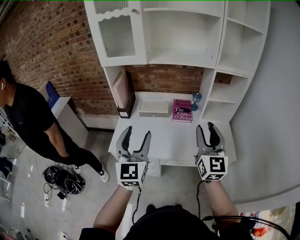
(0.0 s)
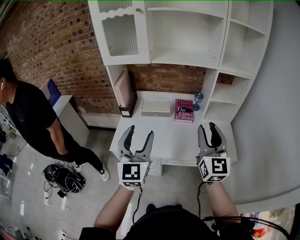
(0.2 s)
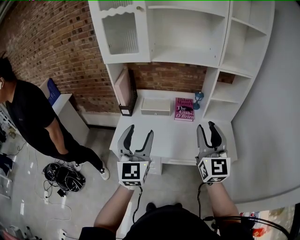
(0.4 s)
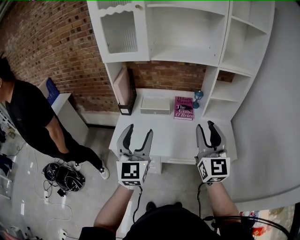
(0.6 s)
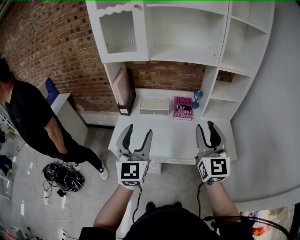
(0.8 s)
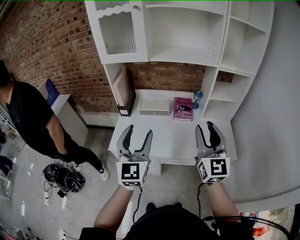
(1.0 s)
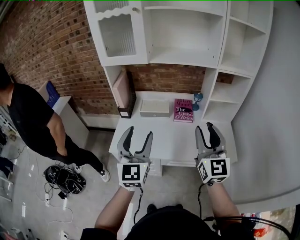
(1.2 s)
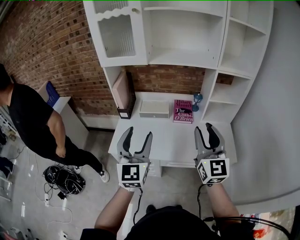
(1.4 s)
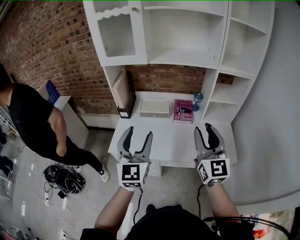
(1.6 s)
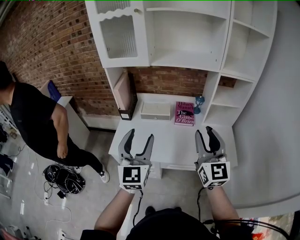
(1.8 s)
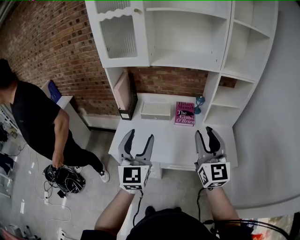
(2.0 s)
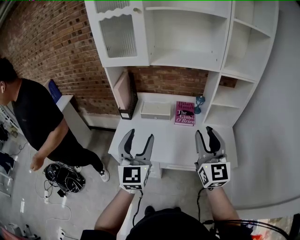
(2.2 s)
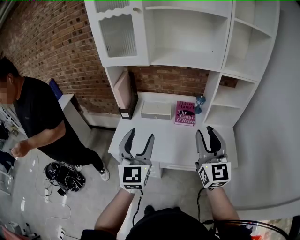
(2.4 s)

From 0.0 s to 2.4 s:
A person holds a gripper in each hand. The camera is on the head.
From 0.0 s to 2.4 s: The grippers stay close to where they were, moving slightly.

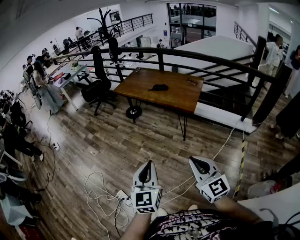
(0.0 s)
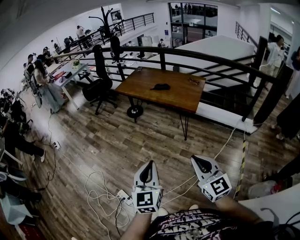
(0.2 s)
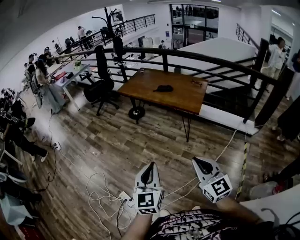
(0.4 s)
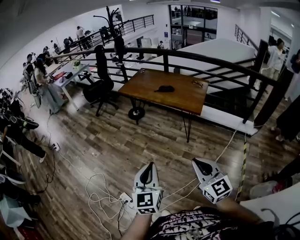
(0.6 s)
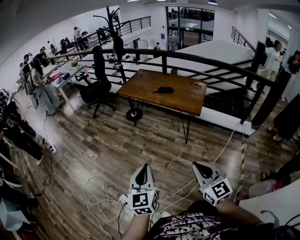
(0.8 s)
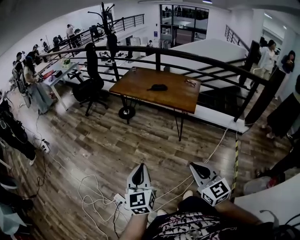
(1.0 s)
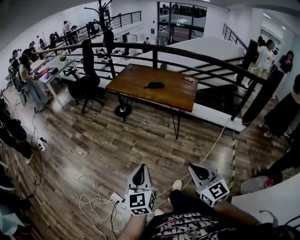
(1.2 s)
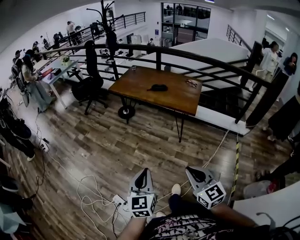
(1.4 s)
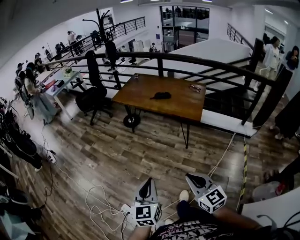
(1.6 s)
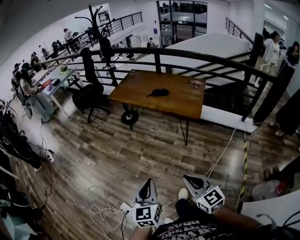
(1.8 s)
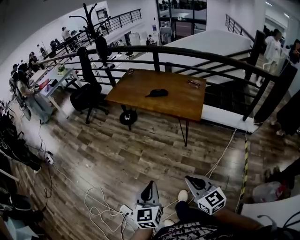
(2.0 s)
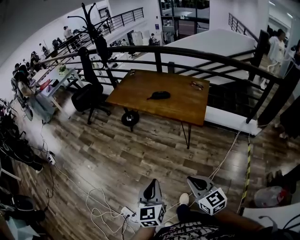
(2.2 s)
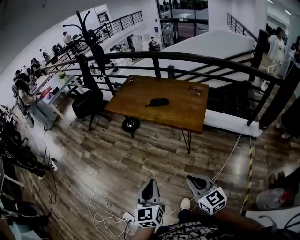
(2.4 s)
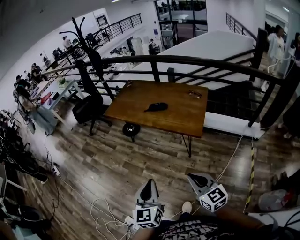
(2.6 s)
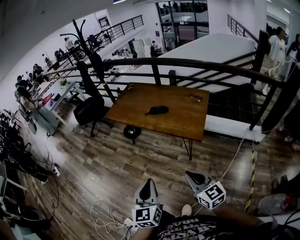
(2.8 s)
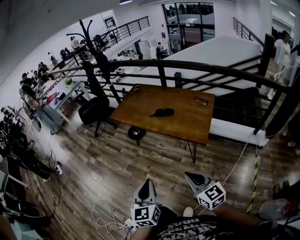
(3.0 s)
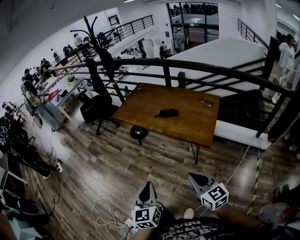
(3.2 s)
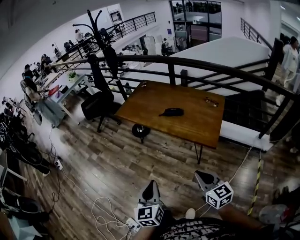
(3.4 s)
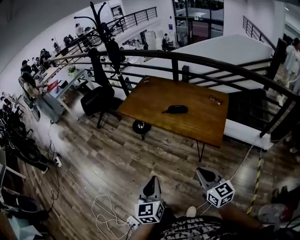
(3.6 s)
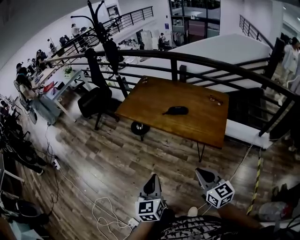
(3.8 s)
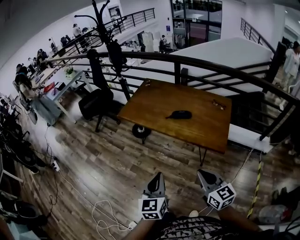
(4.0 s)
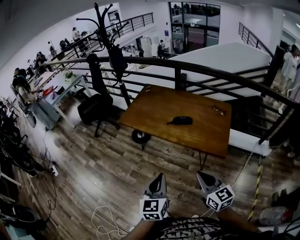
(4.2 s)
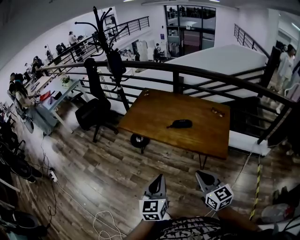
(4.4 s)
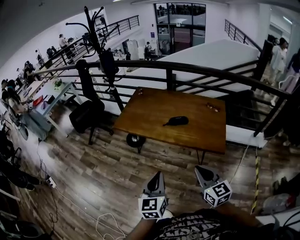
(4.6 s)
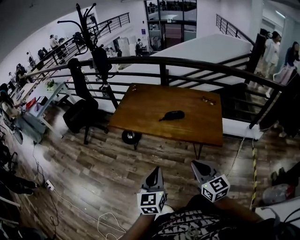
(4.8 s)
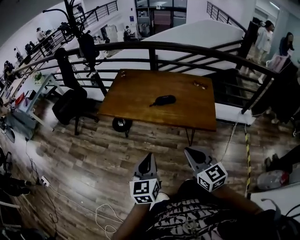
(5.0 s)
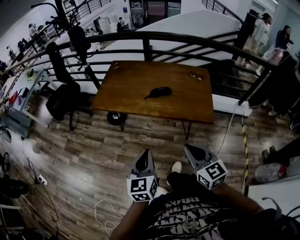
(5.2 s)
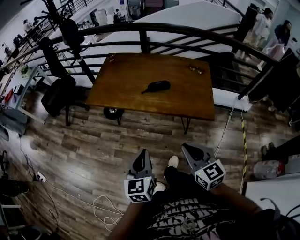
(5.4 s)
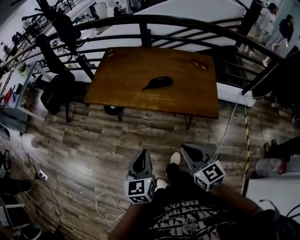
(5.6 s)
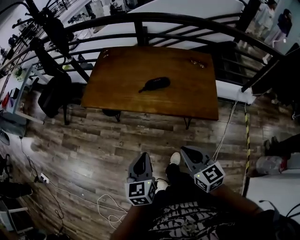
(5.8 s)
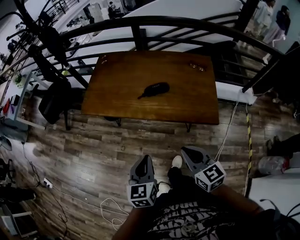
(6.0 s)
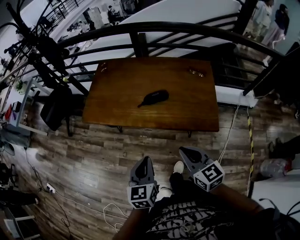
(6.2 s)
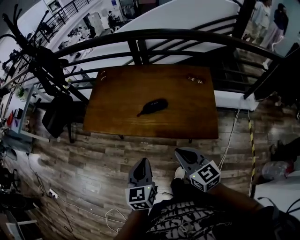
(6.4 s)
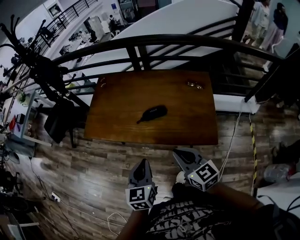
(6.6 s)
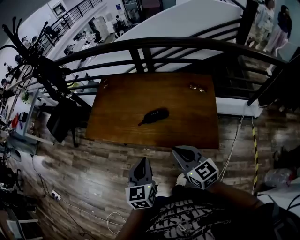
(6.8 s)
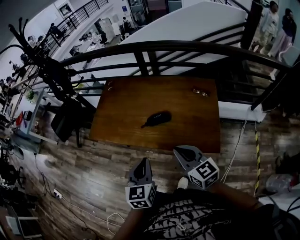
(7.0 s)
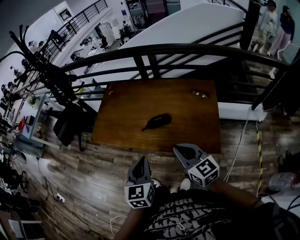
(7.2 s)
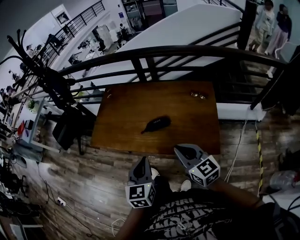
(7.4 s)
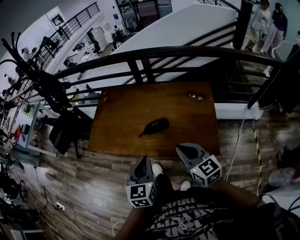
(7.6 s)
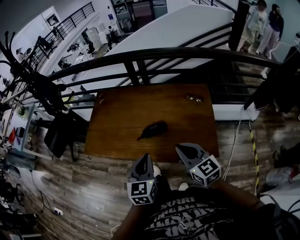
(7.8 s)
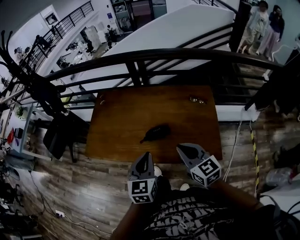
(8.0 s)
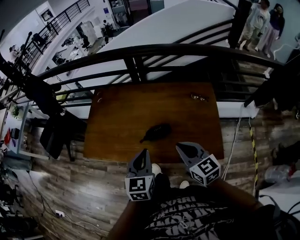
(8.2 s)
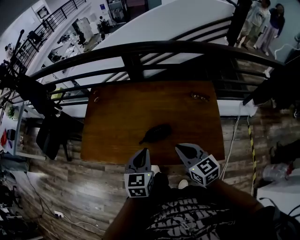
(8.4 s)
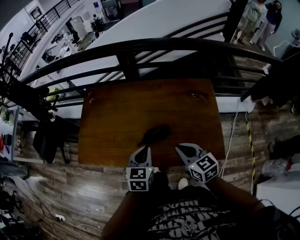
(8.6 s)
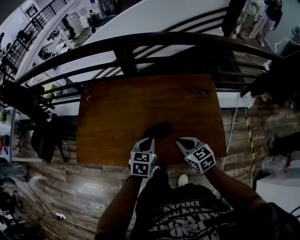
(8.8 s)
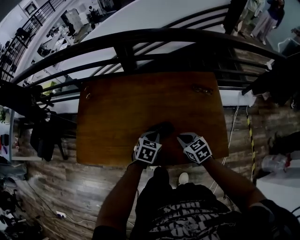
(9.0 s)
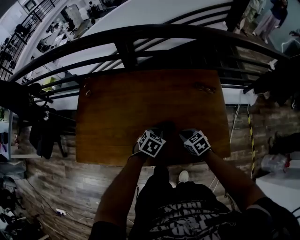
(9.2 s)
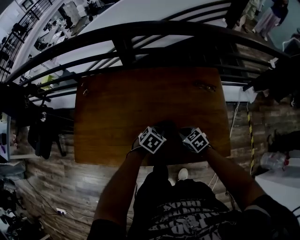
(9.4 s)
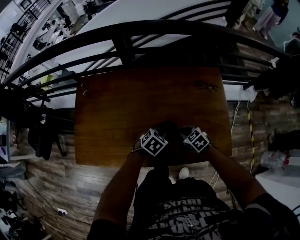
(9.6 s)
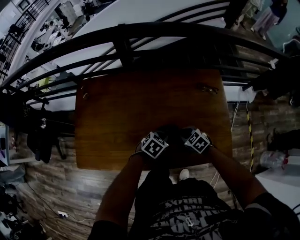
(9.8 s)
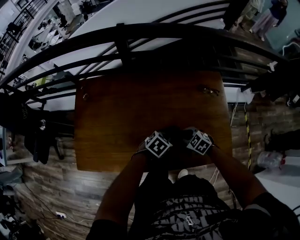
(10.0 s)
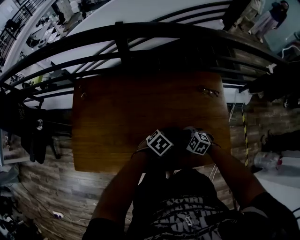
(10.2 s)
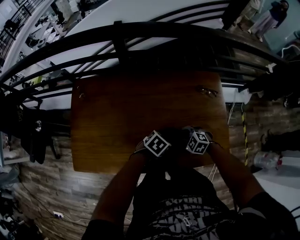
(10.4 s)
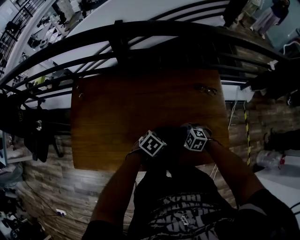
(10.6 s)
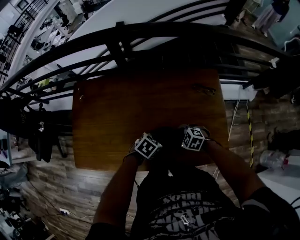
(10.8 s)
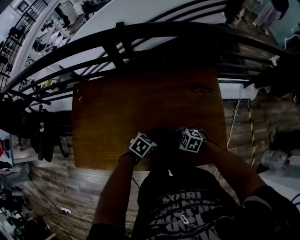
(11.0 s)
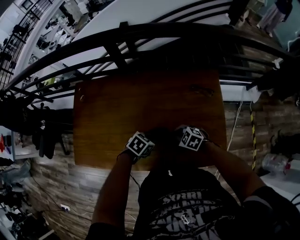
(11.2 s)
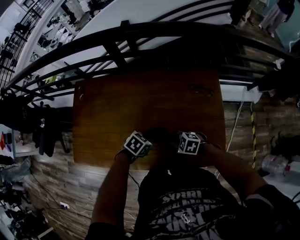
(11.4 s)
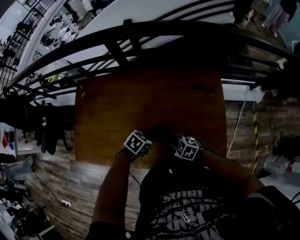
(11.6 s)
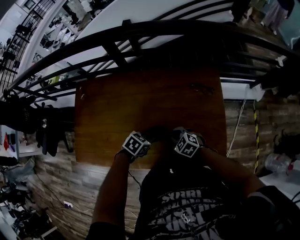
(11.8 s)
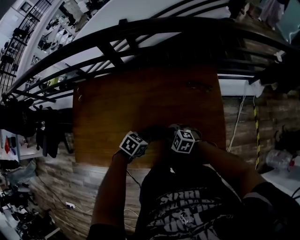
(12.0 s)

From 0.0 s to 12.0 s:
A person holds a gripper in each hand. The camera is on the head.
From 0.0 s to 1.6 s: The grippers both shift to the left, forward and downward by some 15 cm.
From 1.6 s to 3.0 s: The grippers both shift forward and to the right by about 25 cm.
From 3.0 s to 4.4 s: The two grippers go approximately 20 cm forward and to the left.
From 4.4 s to 6.0 s: Both grippers move forward and downward, approximately 15 cm.
From 6.0 s to 7.6 s: The left gripper travels forward, to the right and upward by about 20 cm; the right gripper shifts about 20 cm forward and to the right.
From 7.6 s to 9.0 s: The left gripper goes roughly 30 cm forward and downward, and turns by about 40 degrees; the right gripper moves downward and forward, roughly 30 cm, and swivels approximately 30 degrees.
From 9.0 s to 10.4 s: The right gripper shifts approximately 10 cm downward, and rotates approximately 40 degrees. The left gripper heads downward, covering roughly 5 cm, and rotates roughly 30 degrees.

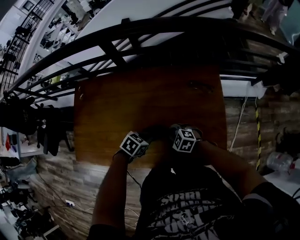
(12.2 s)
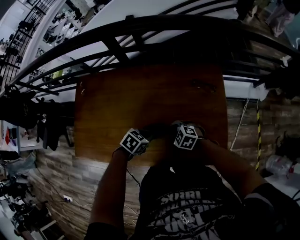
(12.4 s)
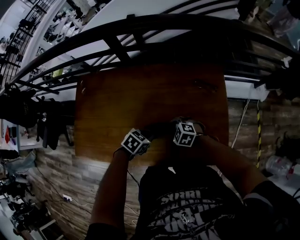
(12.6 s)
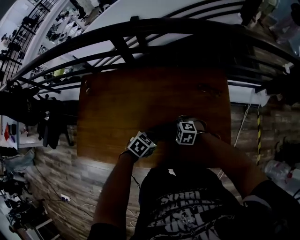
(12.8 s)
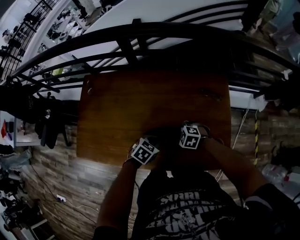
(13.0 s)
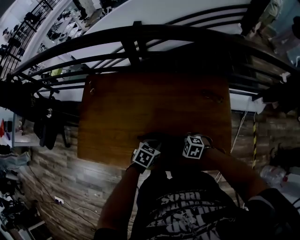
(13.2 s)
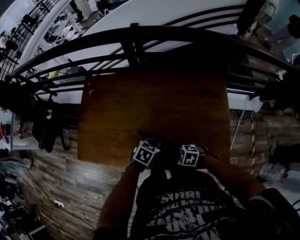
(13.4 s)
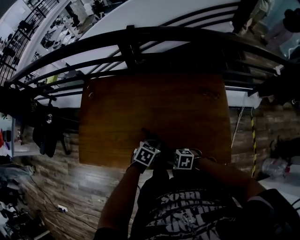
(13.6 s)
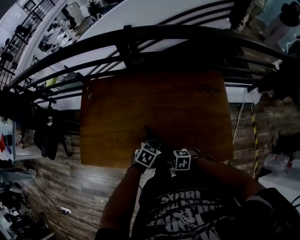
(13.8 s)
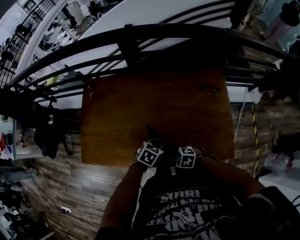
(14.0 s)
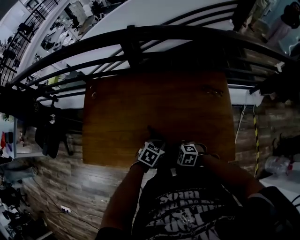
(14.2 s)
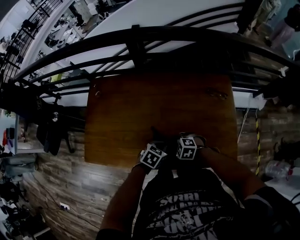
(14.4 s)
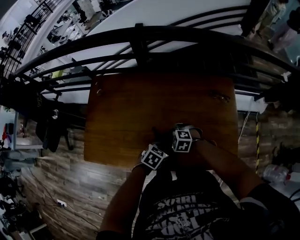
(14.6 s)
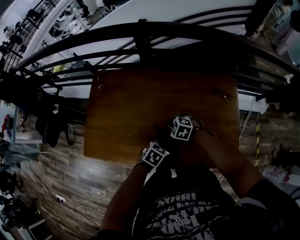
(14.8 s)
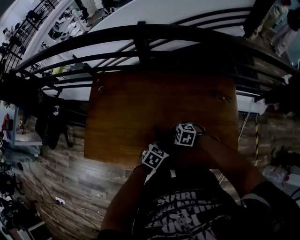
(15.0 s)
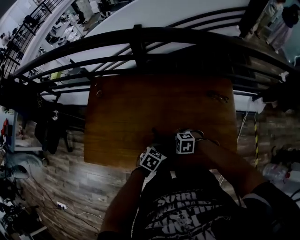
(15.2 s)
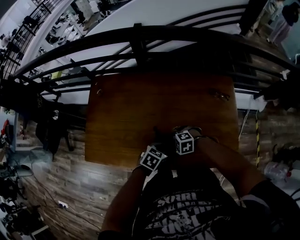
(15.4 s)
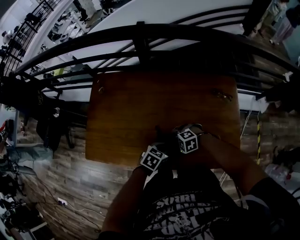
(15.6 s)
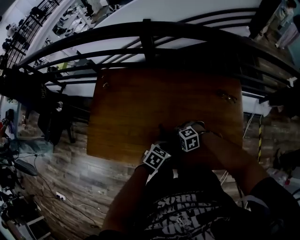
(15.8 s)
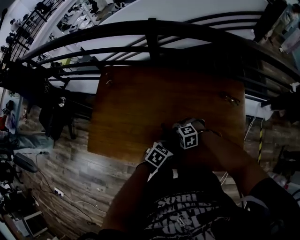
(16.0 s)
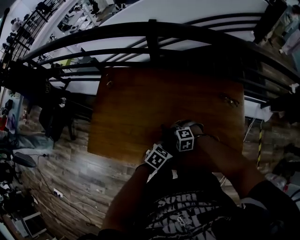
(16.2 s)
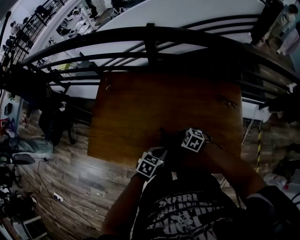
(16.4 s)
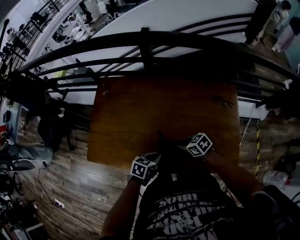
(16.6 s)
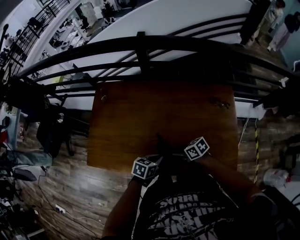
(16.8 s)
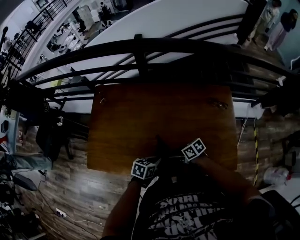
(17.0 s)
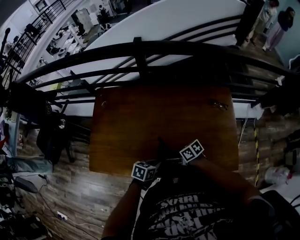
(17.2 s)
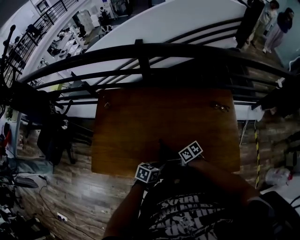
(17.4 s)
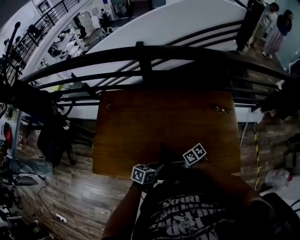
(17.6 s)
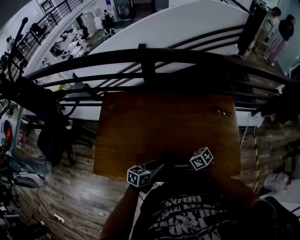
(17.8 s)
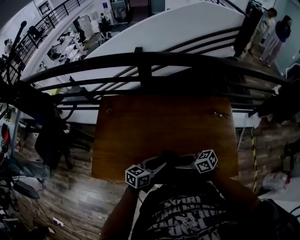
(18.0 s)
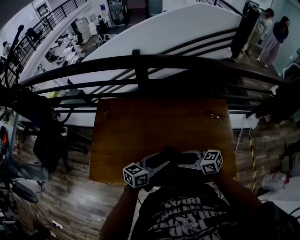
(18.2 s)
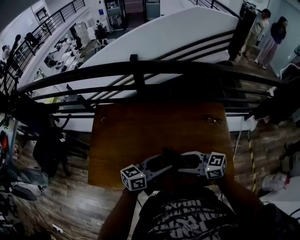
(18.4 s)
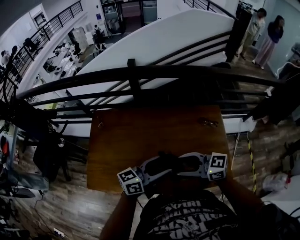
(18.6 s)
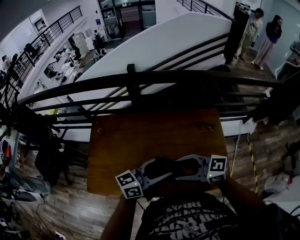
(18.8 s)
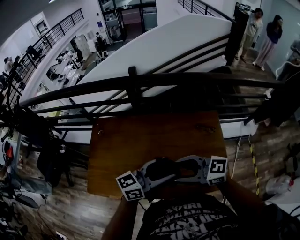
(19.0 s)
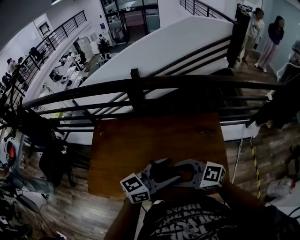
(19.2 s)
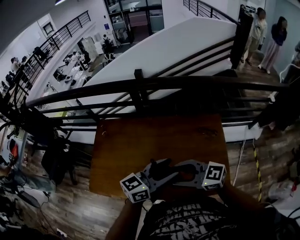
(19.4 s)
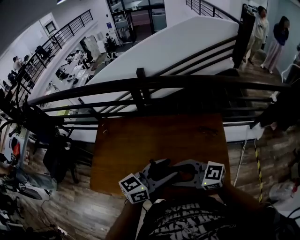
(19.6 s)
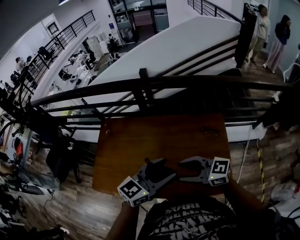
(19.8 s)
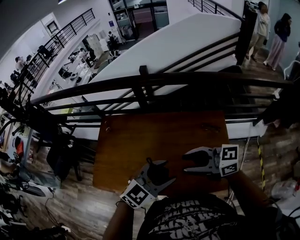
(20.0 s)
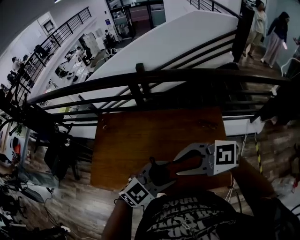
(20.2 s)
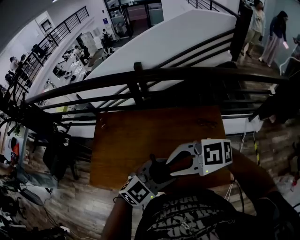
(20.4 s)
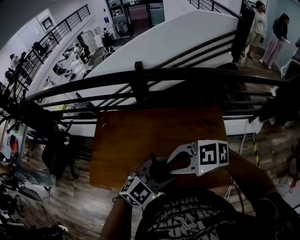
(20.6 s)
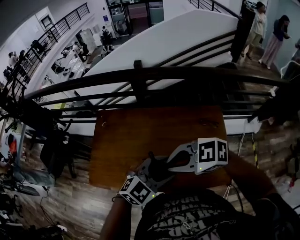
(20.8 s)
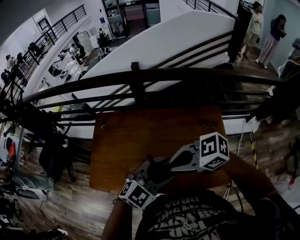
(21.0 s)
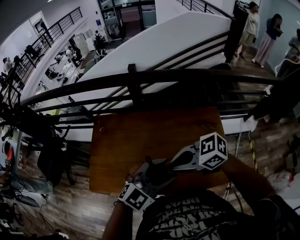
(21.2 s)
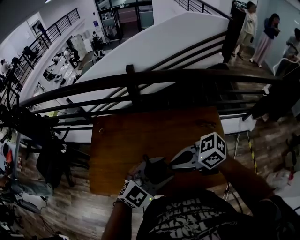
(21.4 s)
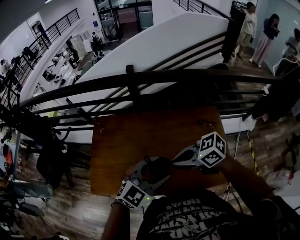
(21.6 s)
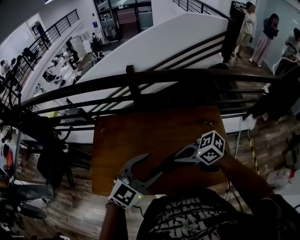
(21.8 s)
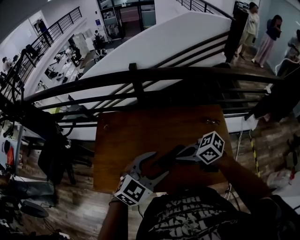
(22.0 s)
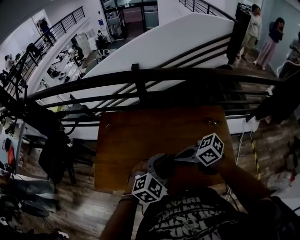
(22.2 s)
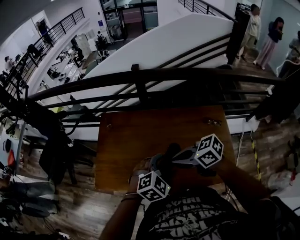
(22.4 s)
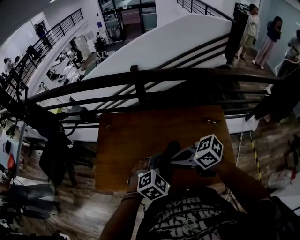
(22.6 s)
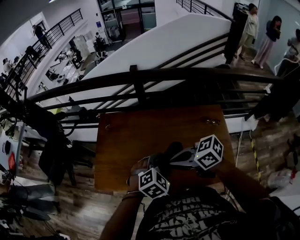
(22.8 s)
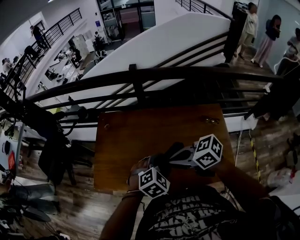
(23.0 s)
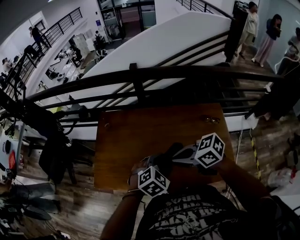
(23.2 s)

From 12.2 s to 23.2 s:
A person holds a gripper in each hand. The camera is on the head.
From 12.2 s to 13.8 s: The left gripper shifts by about 5 cm; the right gripper changes place by approximately 20 cm, and turns by about 20 degrees.
From 13.8 s to 15.4 s: The right gripper turns by roughly 20 degrees, and opens up.
From 15.4 s to 17.0 s: The right gripper rolls clockwise, seen from behind, by roughly 70 degrees, and opens its fingers, while the left gripper ends up approximately 5 cm from where it was.
From 17.0 s to 18.4 s: The grippers both shift upward by roughly 20 cm. The right gripper rotates roughly 40 degrees. Meanwhile the left gripper tips its fingers upward by roughly 40 degrees, and opens its fingers.
From 18.4 s to 20.0 s: Both grippers travel together upward, some 15 cm. The left gripper rotates around the line of its fingers by some 50 degrees, clockwise from behind.
From 20.0 s to 21.6 s: The right gripper ends up about 10 cm from where it was, swivels roughly 30 degrees, and closes, while the left gripper ends up about 10 cm from where it was.
From 21.6 s to 23.2 s: The left gripper is displaced downward by roughly 10 cm, and points its fingers some 30 degrees further downward.
